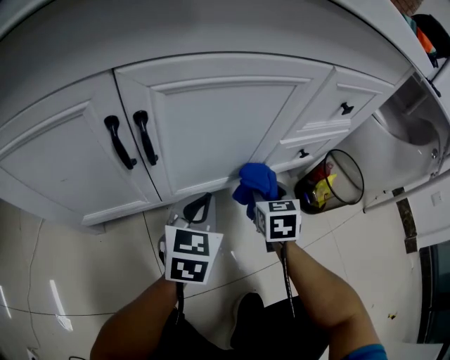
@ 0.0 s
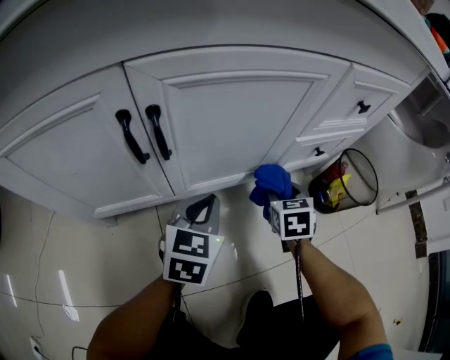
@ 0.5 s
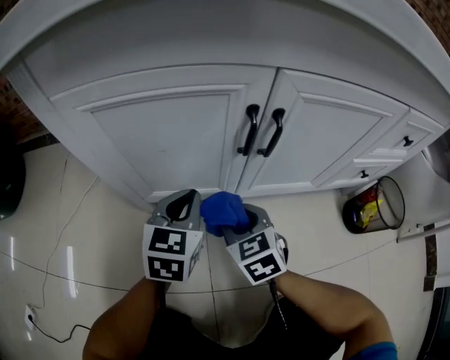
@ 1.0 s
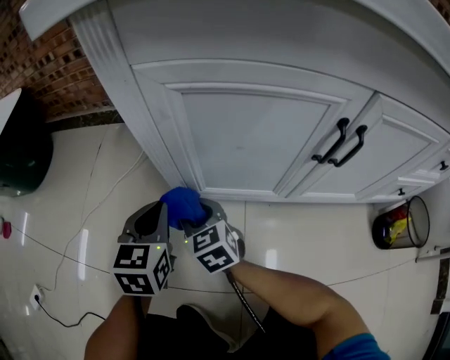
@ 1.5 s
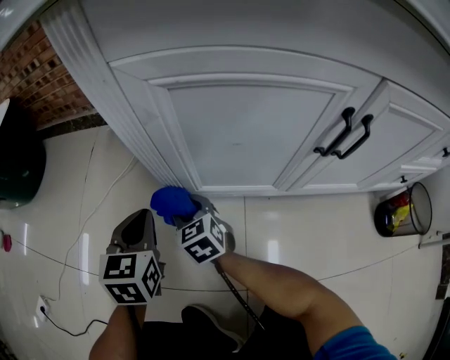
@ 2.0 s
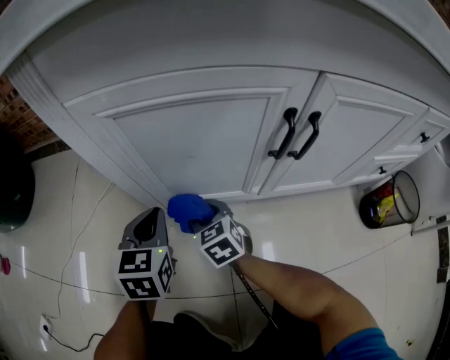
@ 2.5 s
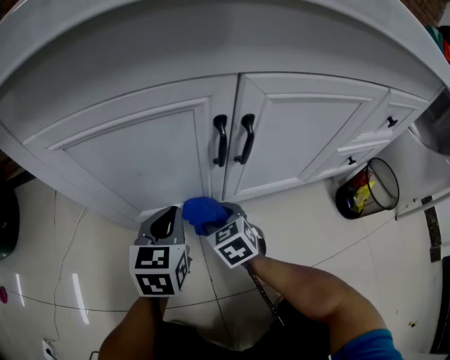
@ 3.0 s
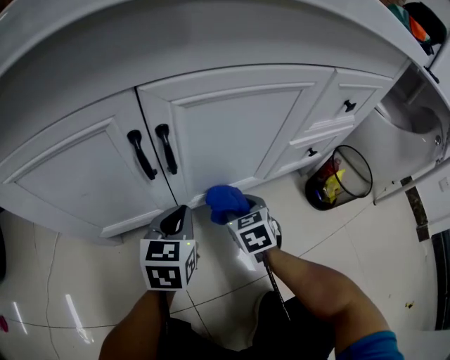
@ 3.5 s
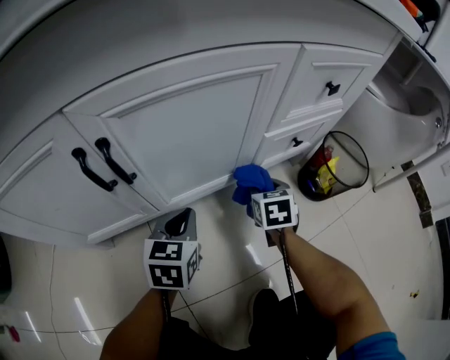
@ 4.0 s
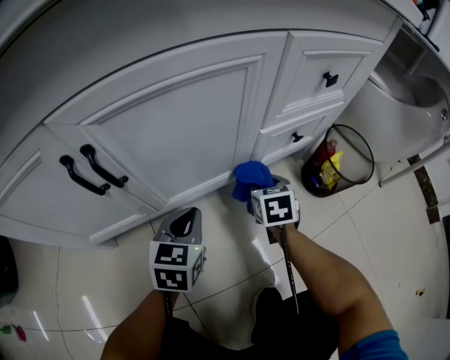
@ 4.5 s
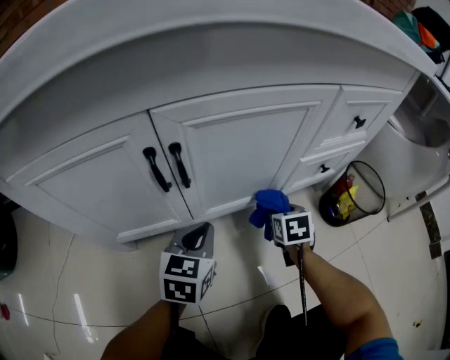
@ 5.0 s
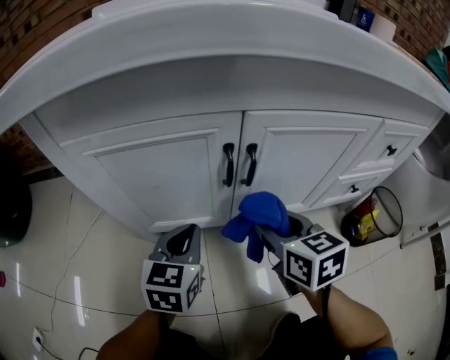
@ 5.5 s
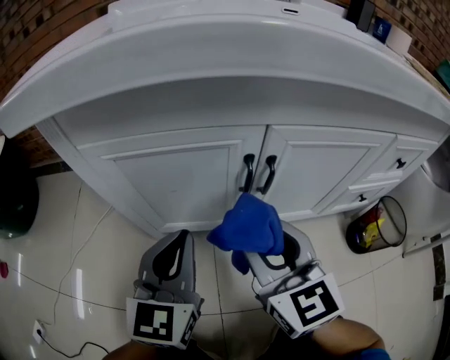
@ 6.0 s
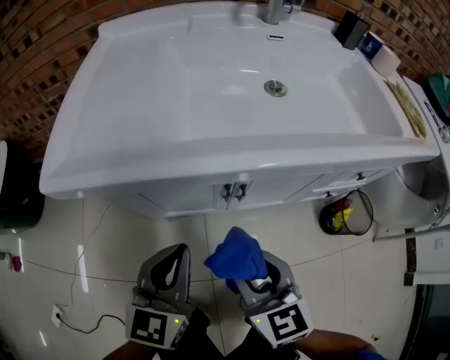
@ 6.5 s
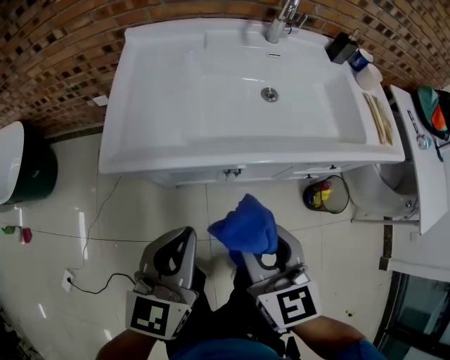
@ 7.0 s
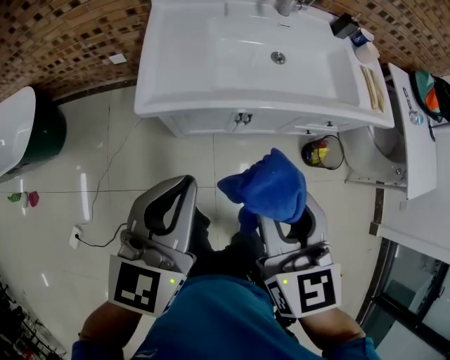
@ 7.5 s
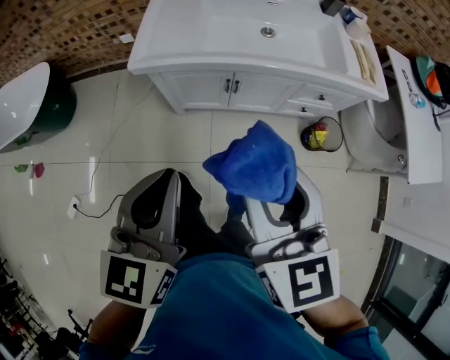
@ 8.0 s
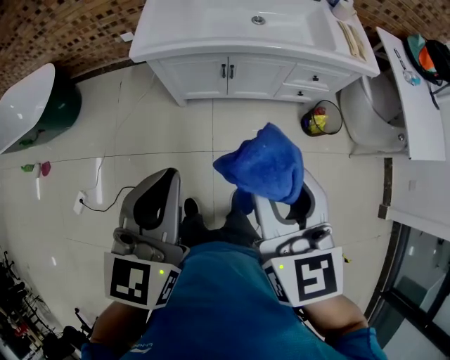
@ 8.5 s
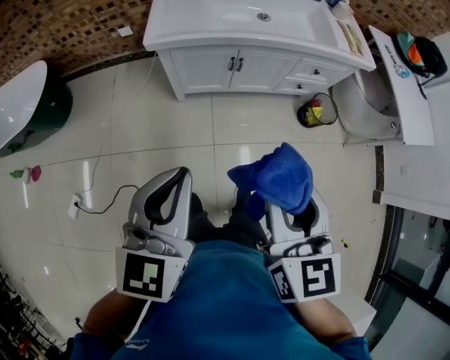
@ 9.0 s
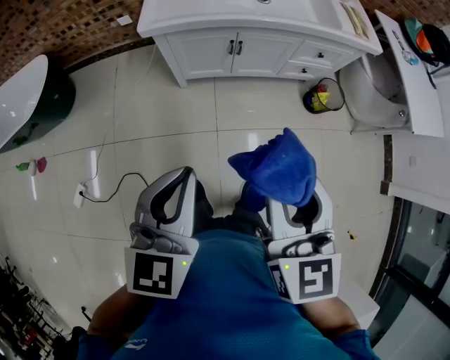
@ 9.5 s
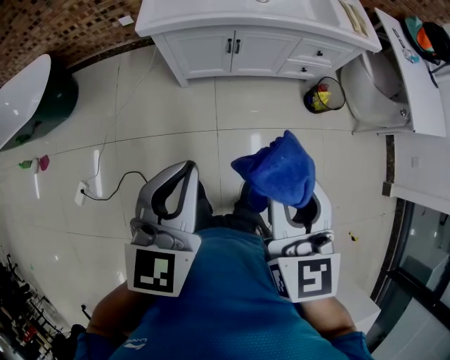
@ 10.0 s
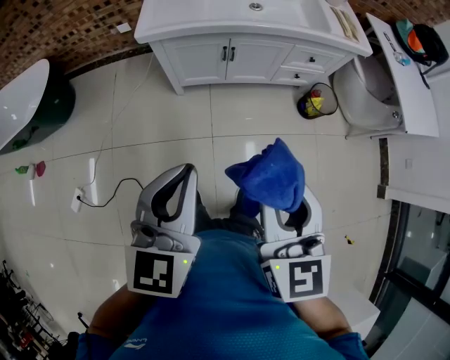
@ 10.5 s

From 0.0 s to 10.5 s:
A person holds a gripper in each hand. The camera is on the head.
From 0.0 s to 2.0 s: The pair of grippers is taken roughly 50 cm. The left gripper turns by approximately 40 degrees; the right gripper turns by roughly 50 degrees.
From 2.0 s to 4.0 s: The pair of grippers is taken about 50 cm. The left gripper changes its angle by some 40 degrees. The right gripper changes its angle by about 60 degrees.
From 4.0 s to 6.5 s: Both grippers move upward, about 40 cm. The left gripper swivels some 30 degrees, while the right gripper swivels some 40 degrees.
From 6.5 s to 8.5 s: The grippers both shift upward and backward by about 50 cm.
From 8.5 s to 10.5 s: Both grippers travel together backward, some 10 cm. The left gripper travels to the left and back again, roughly 10 cm each way.

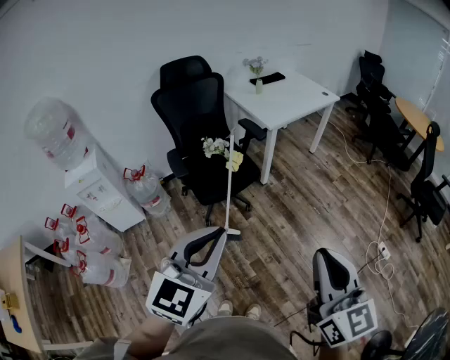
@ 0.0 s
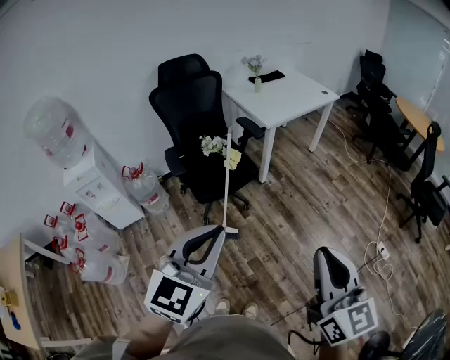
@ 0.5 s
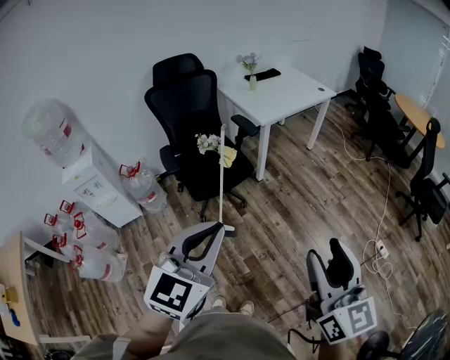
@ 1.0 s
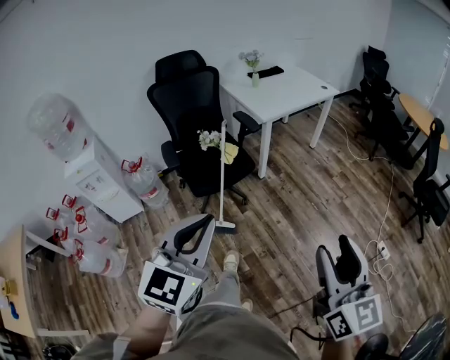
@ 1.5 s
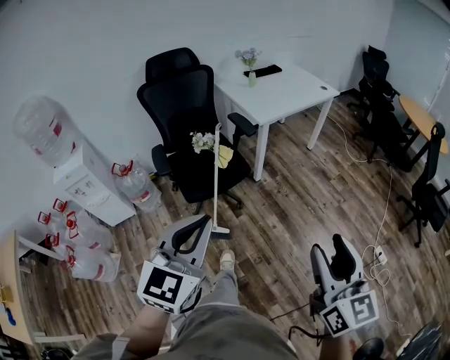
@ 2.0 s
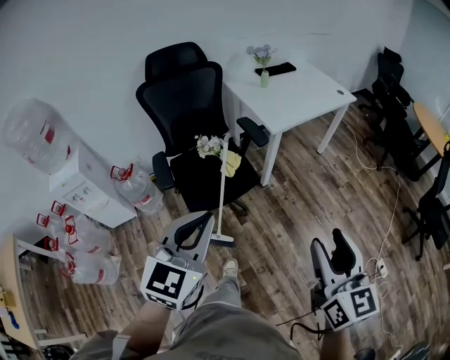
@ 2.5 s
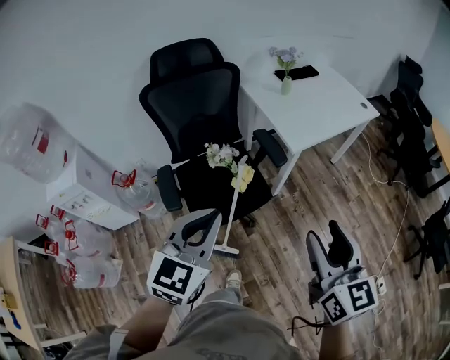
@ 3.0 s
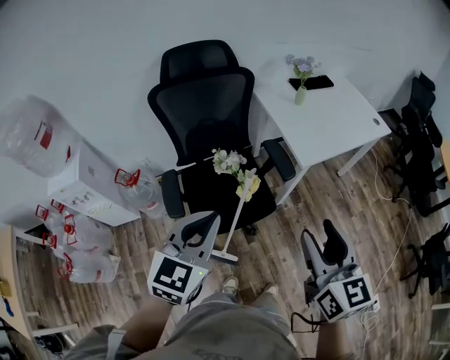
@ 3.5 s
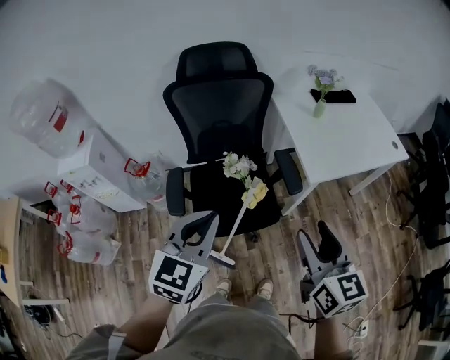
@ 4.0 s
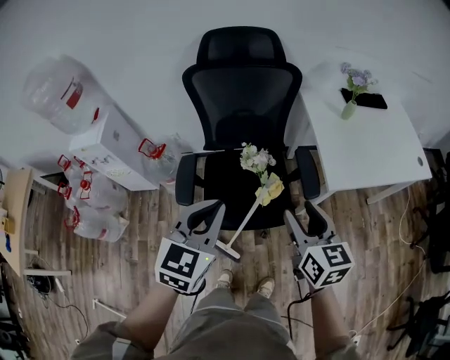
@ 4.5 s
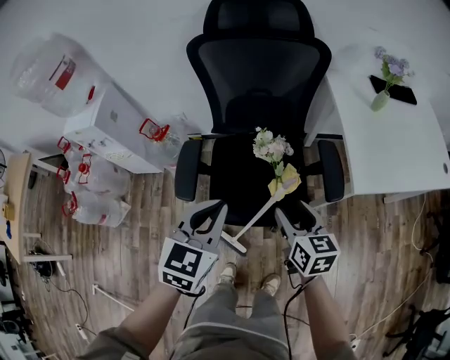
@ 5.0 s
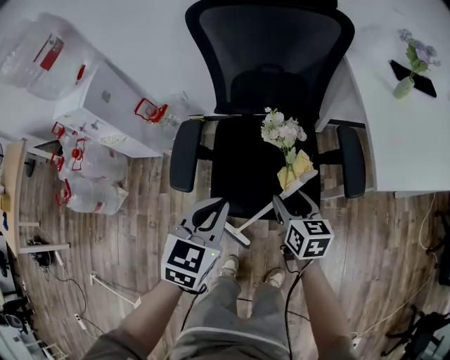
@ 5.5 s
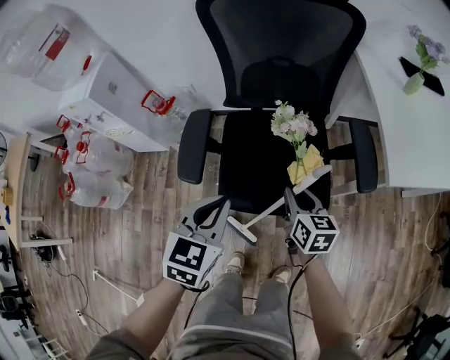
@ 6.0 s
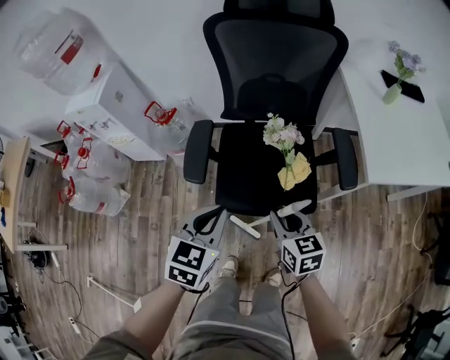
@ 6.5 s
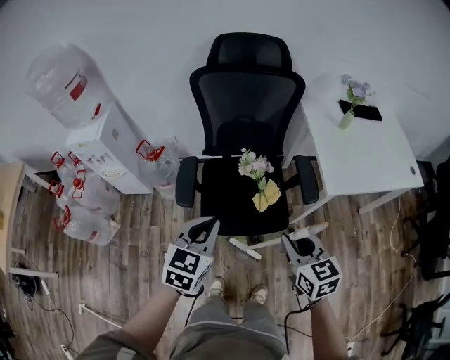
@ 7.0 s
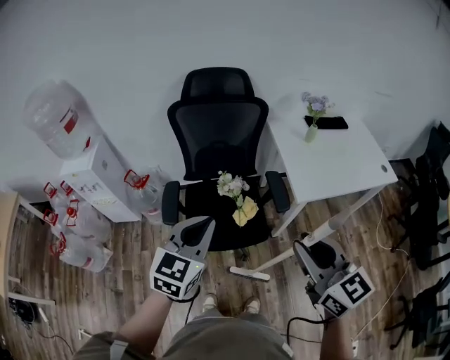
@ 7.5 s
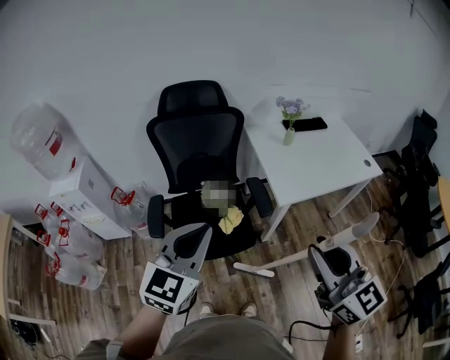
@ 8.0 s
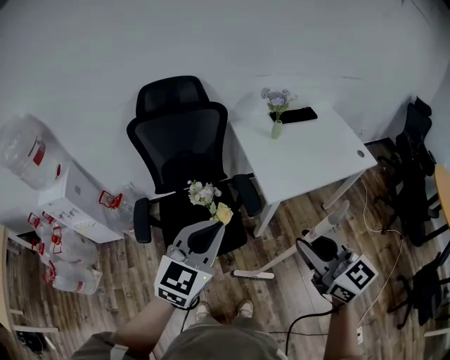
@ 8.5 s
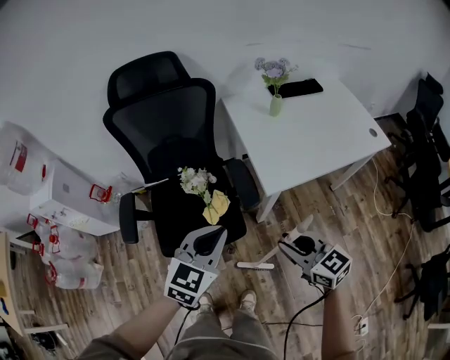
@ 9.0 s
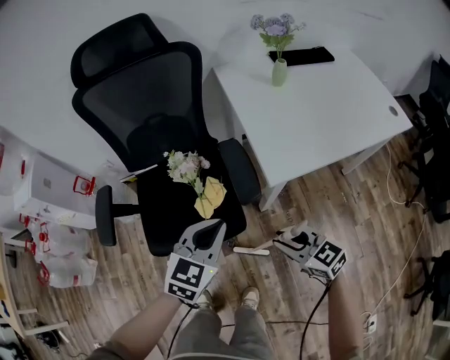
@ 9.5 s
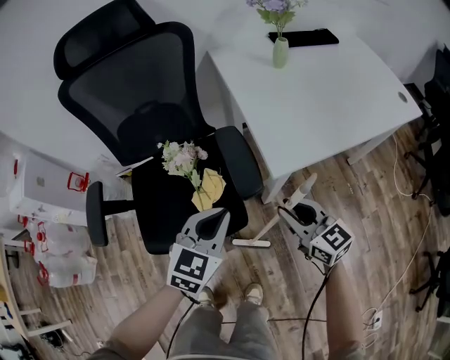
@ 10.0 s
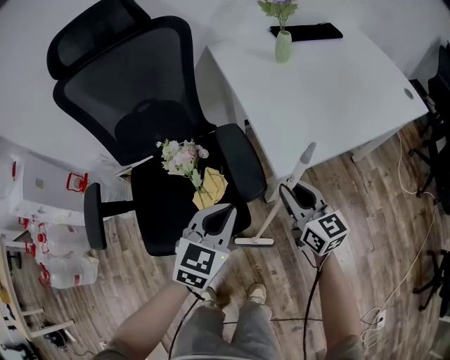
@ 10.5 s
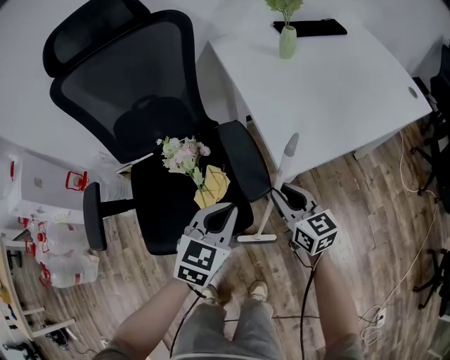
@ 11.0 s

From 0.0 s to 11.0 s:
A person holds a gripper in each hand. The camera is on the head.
From 0.0 s to 2.0 s: The right gripper goes roughly 10 cm to the right and forward, and opens; the left gripper is displaced forward by about 5 cm.
From 2.0 s to 3.5 s: Both grippers move forward, about 35 cm.
From 3.5 s to 5.5 s: The right gripper moves downward, approximately 40 cm, and changes its angle by about 40 degrees. Meanwhile the left gripper is displaced downward by approximately 25 cm, and turns by some 30 degrees.
From 5.5 s to 7.5 s: The left gripper heads upward, covering some 25 cm, and turns by roughly 20 degrees. The right gripper heads upward and backward, covering roughly 50 cm, rotates about 30 degrees, and closes its fingers.
From 7.5 s to 9.0 s: The left gripper heads to the right and downward, covering approximately 20 cm, while the right gripper moves downward and to the right, roughly 25 cm.
From 9.0 s to 11.0 s: Both grippers travel together downward and forward, about 25 cm. The right gripper rotates some 20 degrees.

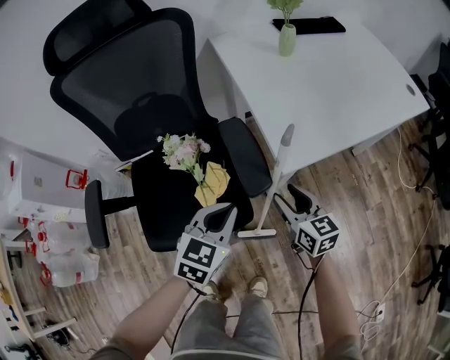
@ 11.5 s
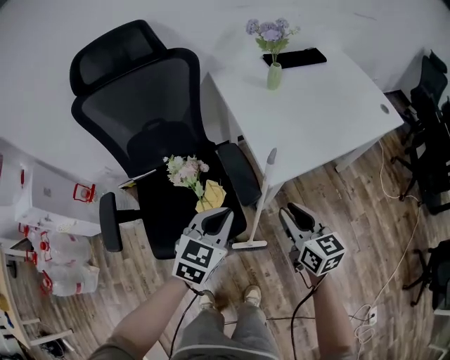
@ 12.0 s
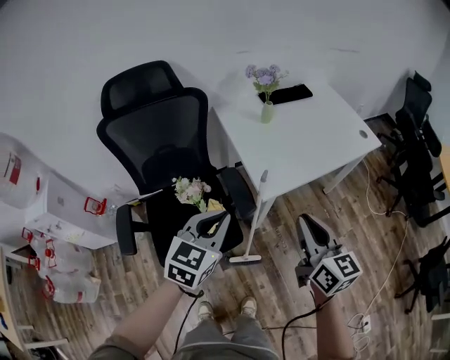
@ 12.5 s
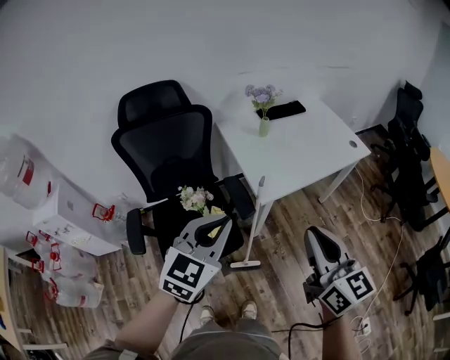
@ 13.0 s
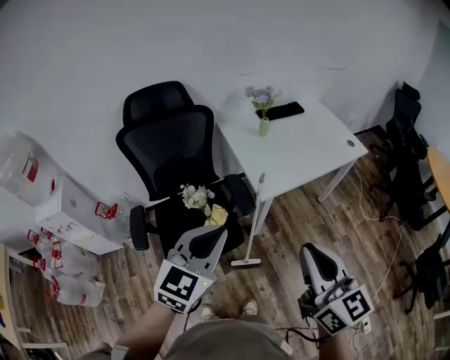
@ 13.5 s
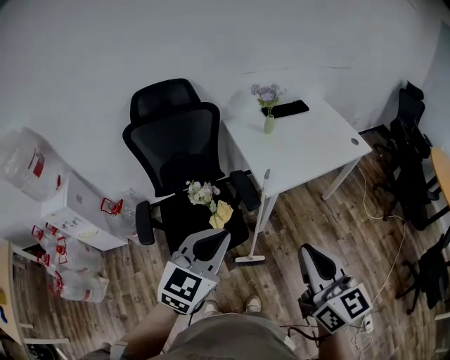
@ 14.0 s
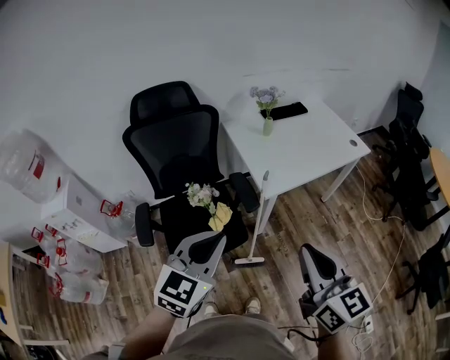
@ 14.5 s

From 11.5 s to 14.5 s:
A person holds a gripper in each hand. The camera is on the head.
From 11.5 s to 13.0 s: The right gripper heads upward and backward, covering roughly 50 cm, swivels approximately 20 degrees, and closes up. The left gripper moves upward, approximately 35 cm, and turns by approximately 20 degrees.
From 13.0 s to 14.5 s: Both grippers travel together backward, roughly 10 cm.

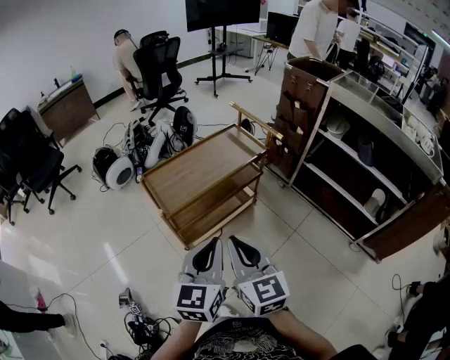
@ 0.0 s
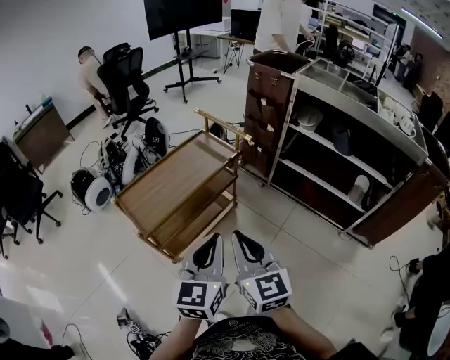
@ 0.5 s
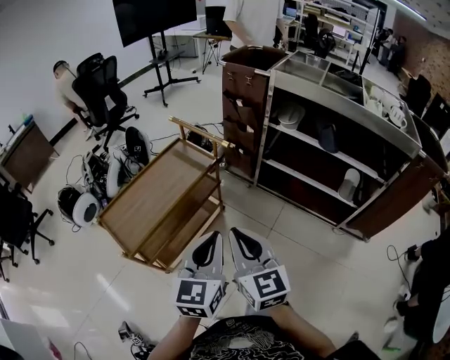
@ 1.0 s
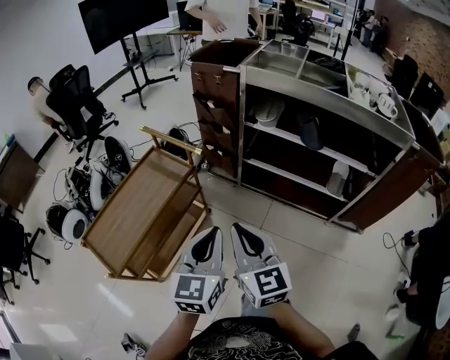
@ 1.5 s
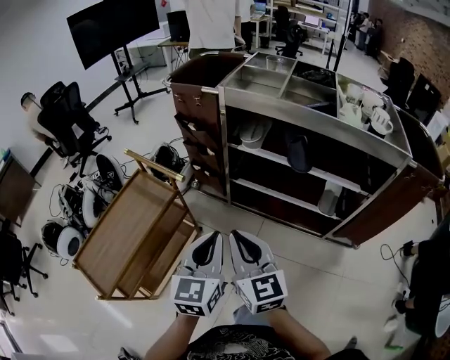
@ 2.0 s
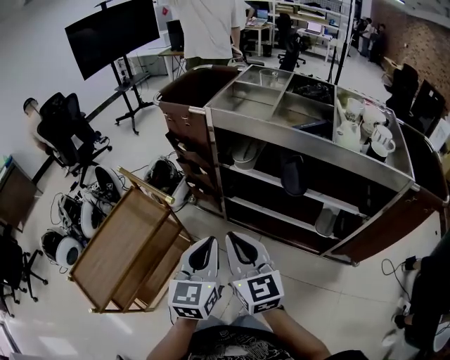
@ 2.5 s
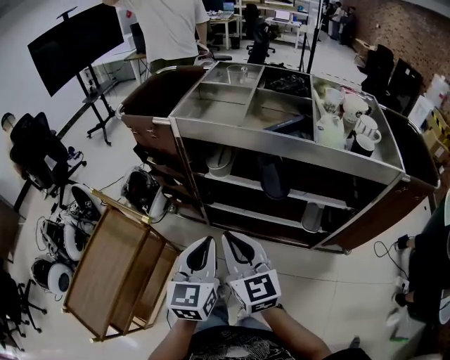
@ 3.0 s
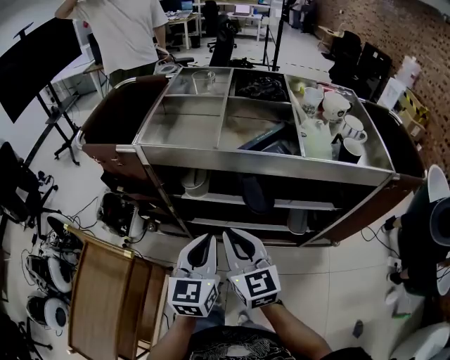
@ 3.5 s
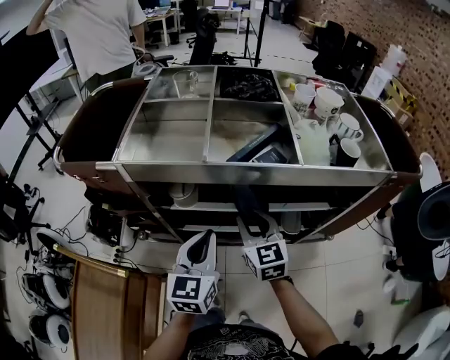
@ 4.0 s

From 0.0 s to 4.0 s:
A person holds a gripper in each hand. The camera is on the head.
From 0.0 s to 2.0 s: Both grippers are carried to the right and forward, roughly 40 cm. The right gripper rotates about 20 degrees. Meanwhile the left gripper rotates approximately 20 degrees.
From 2.0 s to 4.0 s: The right gripper moves some 40 cm, and turns by some 30 degrees. The left gripper moves roughly 30 cm, and rotates about 20 degrees.
